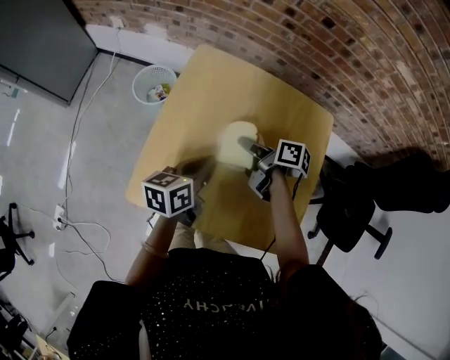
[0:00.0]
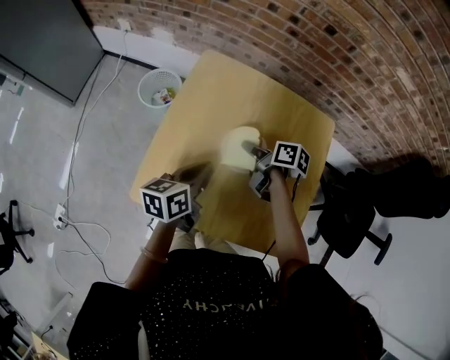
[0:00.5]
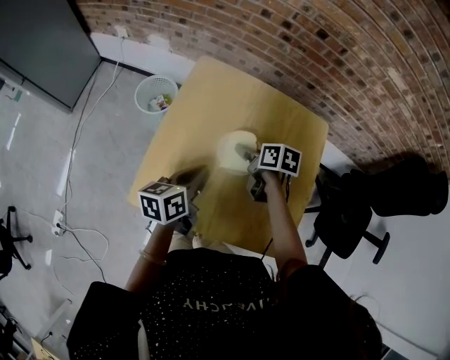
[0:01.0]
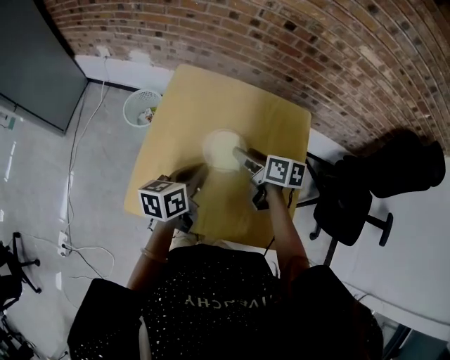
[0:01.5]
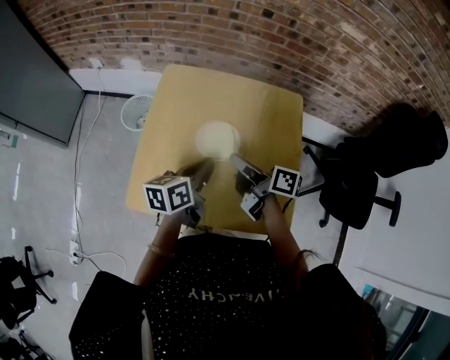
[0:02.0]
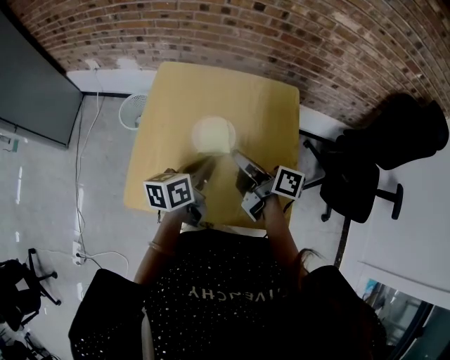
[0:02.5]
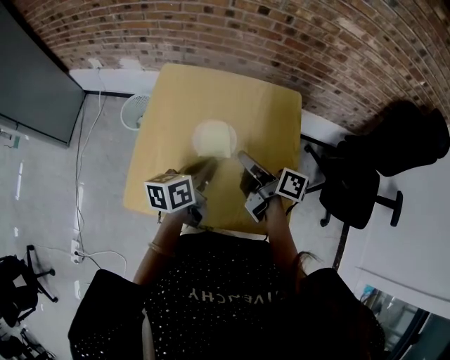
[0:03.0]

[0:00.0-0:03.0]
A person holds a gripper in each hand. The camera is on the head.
0:00.0 to 0:01.5: The right gripper moves about 5 cm, swivels some 30 degrees, and opens its fingers.
0:01.5 to 0:03.0: The right gripper shifts roughly 10 cm backward and upward, changes its angle by about 30 degrees, and closes its fingers, while the left gripper is displaced to the right by roughly 5 cm.

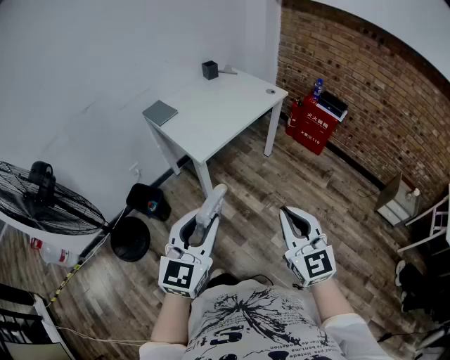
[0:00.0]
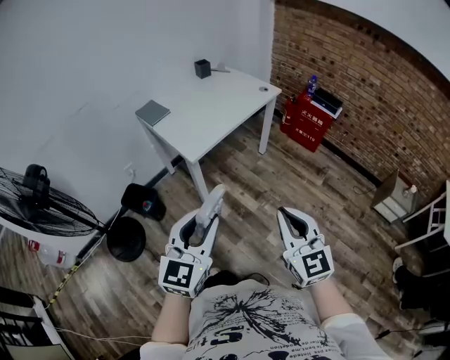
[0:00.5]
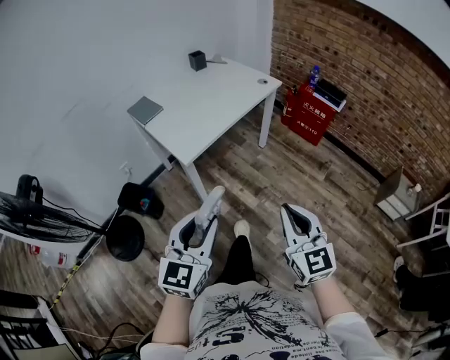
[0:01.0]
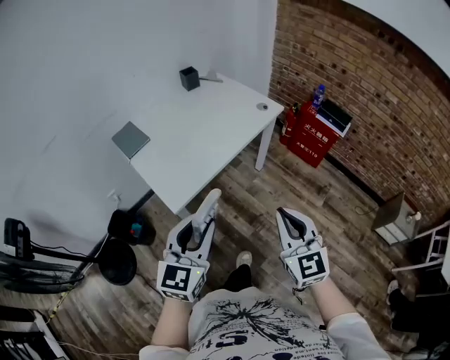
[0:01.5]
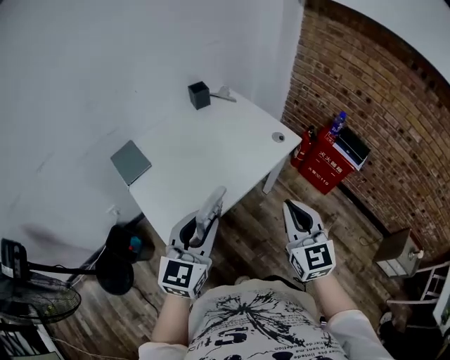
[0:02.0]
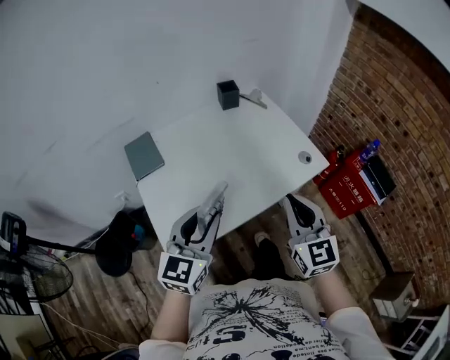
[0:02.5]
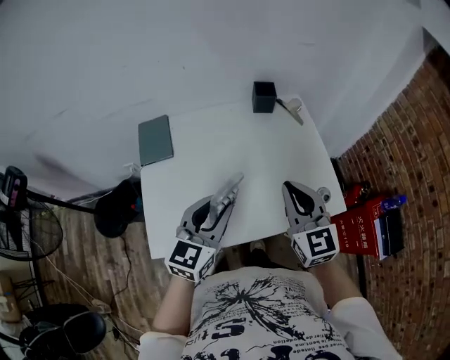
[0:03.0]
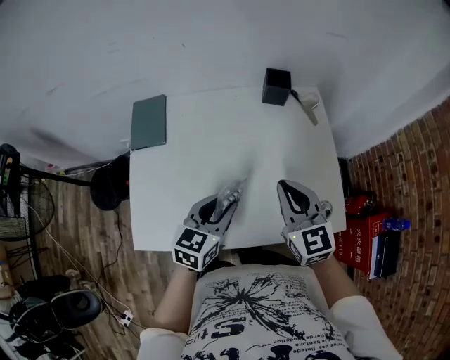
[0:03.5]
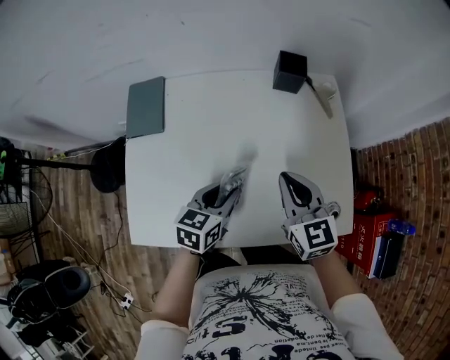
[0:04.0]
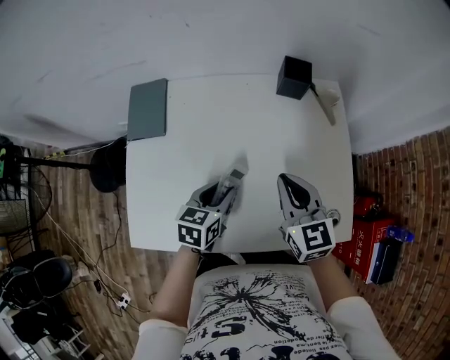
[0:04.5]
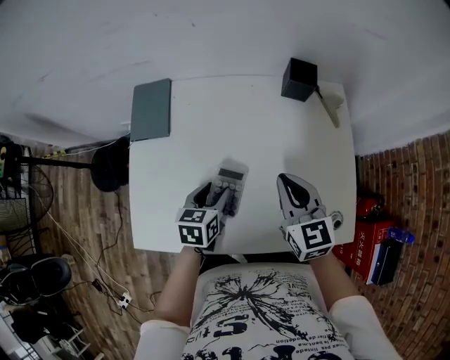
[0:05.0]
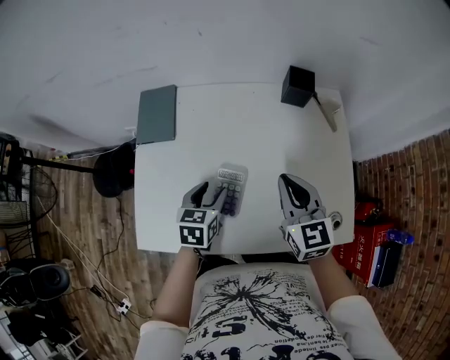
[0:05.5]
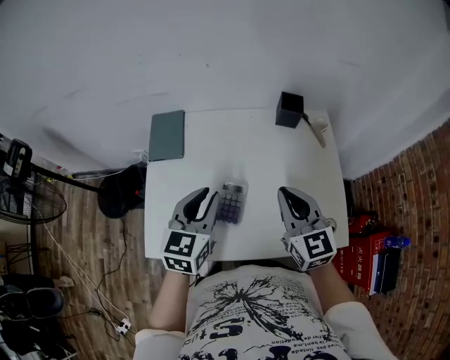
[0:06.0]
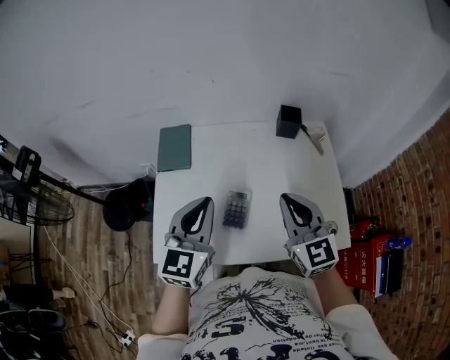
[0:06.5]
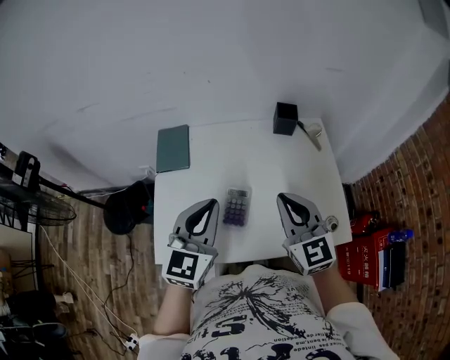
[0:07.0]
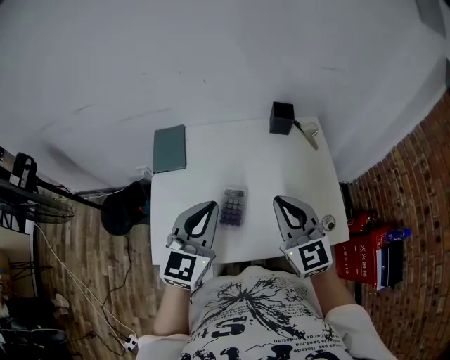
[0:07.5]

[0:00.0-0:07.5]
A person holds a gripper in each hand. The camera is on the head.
0:00.0 to 0:02.0: The two grippers travel together, forward, some 60 cm.
0:02.0 to 0:04.0: The right gripper moves some 50 cm, and rotates approximately 50 degrees; the left gripper shifts by approximately 50 cm, and changes its angle by about 50 degrees.
0:04.0 to 0:05.5: The left gripper travels to the left by some 10 cm, and opens up.
0:05.5 to 0:07.5: The right gripper goes some 15 cm upward and backward. Meanwhile the left gripper heads upward, covering about 25 cm, tips its fingers upward by about 30 degrees, and closes its fingers.

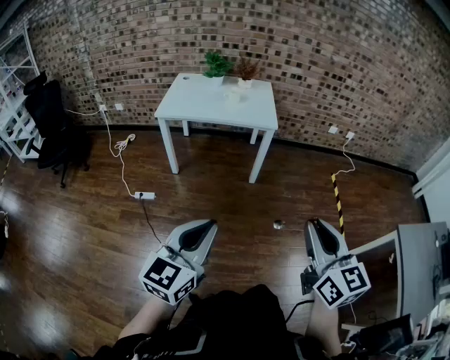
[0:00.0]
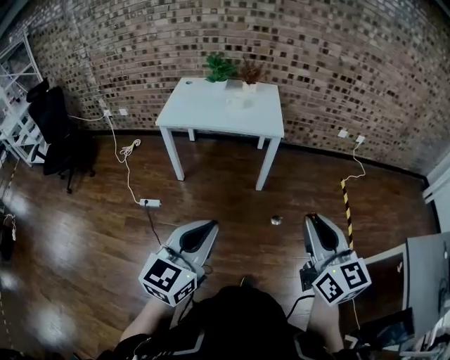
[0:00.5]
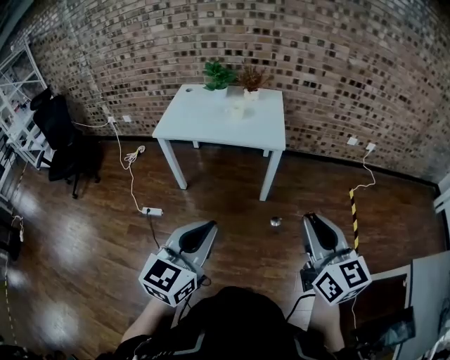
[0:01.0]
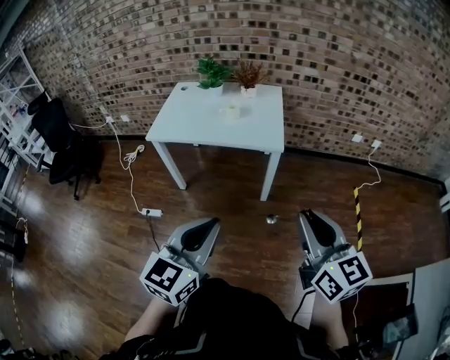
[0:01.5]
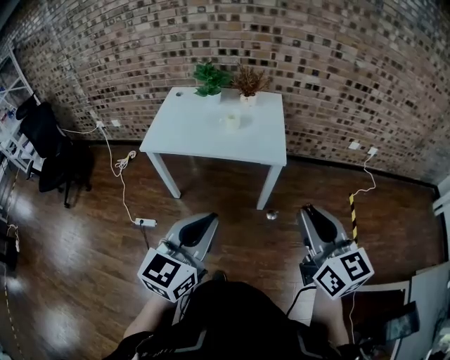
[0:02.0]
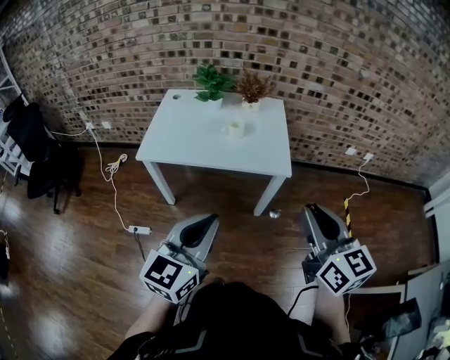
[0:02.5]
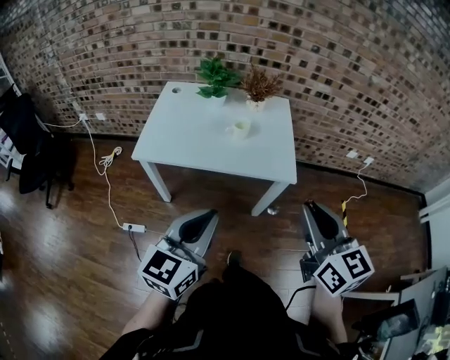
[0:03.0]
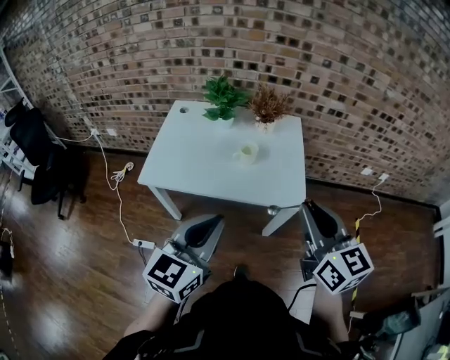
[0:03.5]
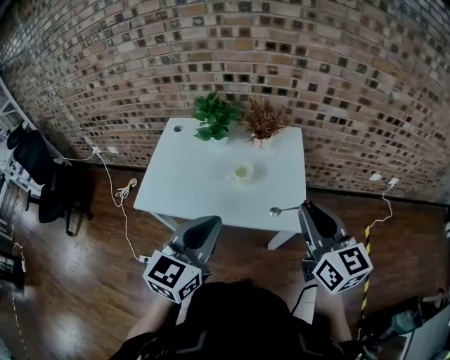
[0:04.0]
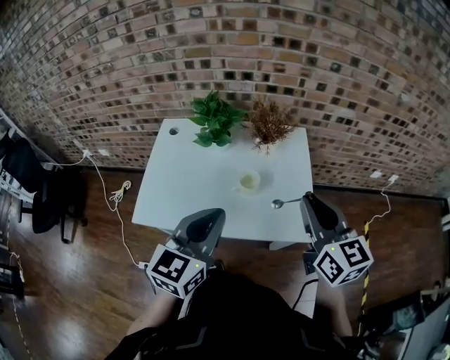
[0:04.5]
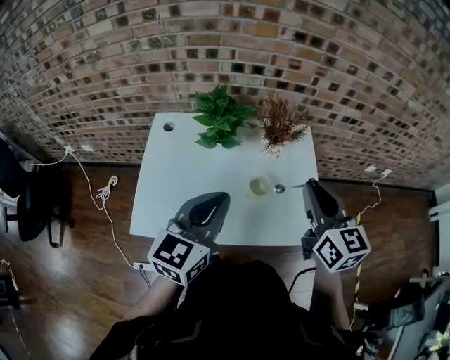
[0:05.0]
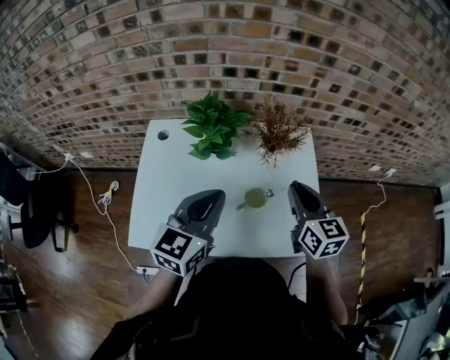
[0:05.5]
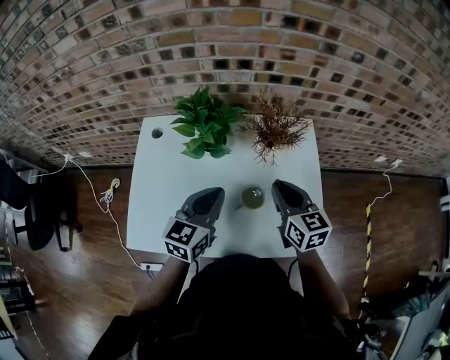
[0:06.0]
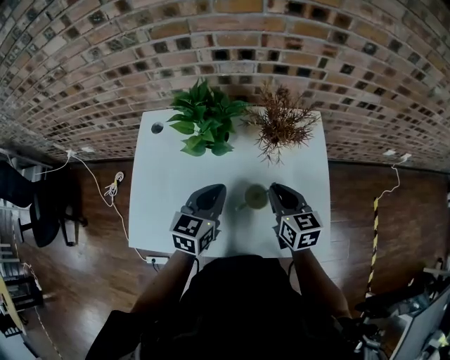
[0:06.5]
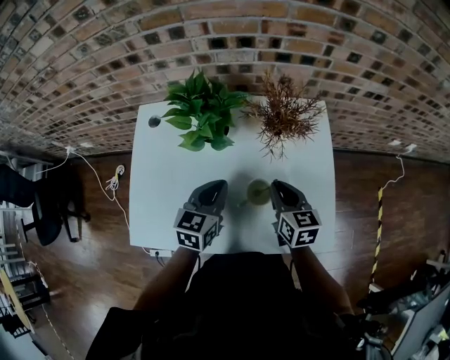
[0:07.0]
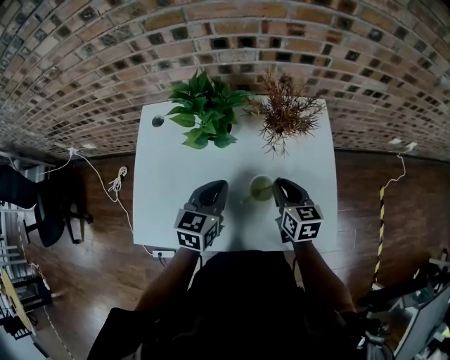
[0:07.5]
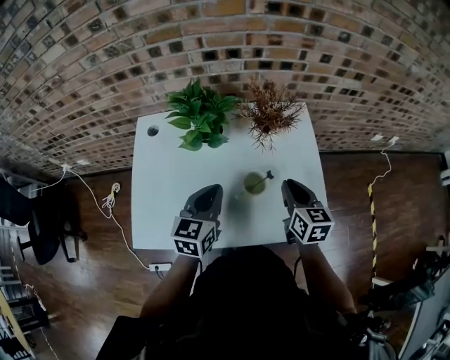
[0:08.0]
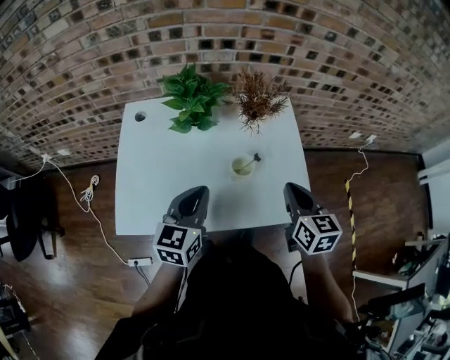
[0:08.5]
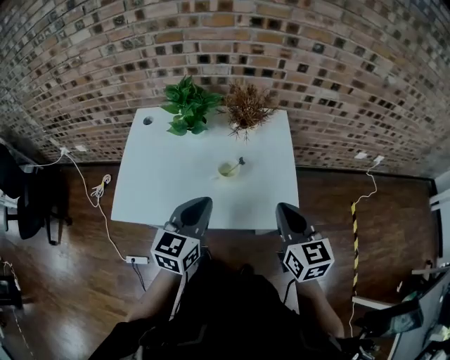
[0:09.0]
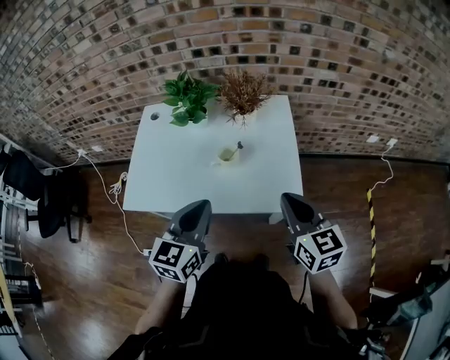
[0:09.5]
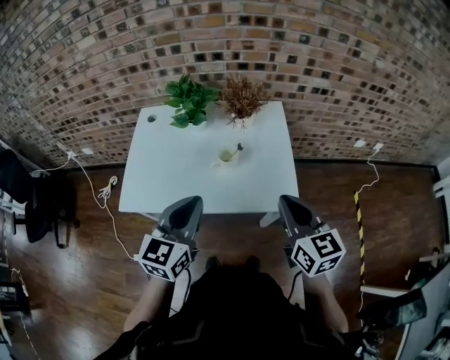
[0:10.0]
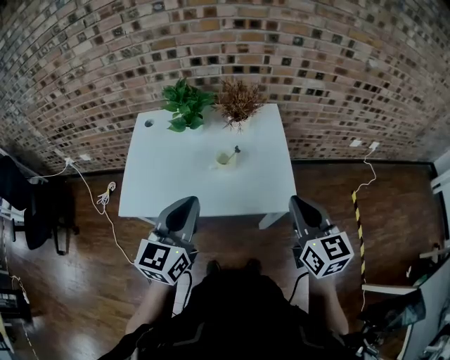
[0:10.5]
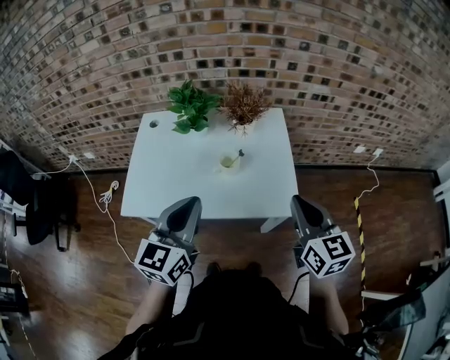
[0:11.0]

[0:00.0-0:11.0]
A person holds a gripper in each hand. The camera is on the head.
0:00.0 to 0:02.0: The grippers both shift forward by some 35 cm.
0:02.0 to 0:03.5: The two grippers go roughly 25 cm forward and to the left.
0:03.5 to 0:05.5: The two grippers go roughly 35 cm forward.
0:05.5 to 0:07.5: The right gripper shifts roughly 20 cm downward, while the left gripper goes some 20 cm downward and forward.
0:07.5 to 0:09.0: Both grippers move backward, upward and to the right, about 25 cm.
0:09.0 to 0:11.0: Both grippers travel together upward and backward, roughly 10 cm.

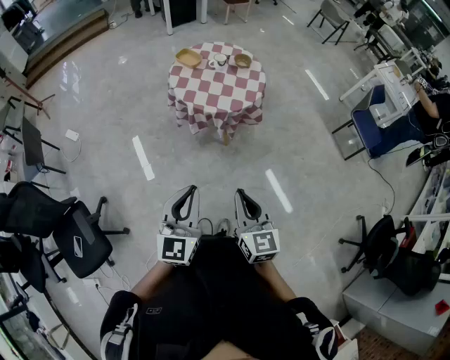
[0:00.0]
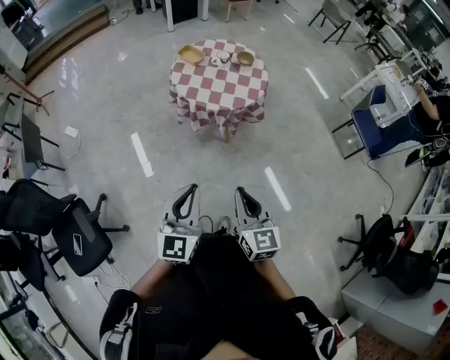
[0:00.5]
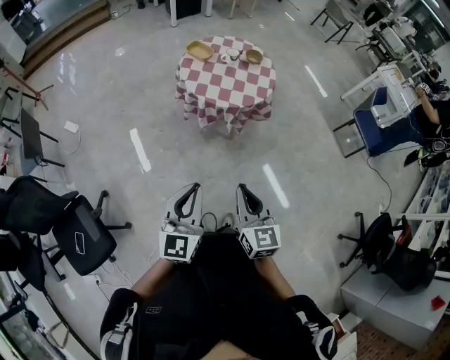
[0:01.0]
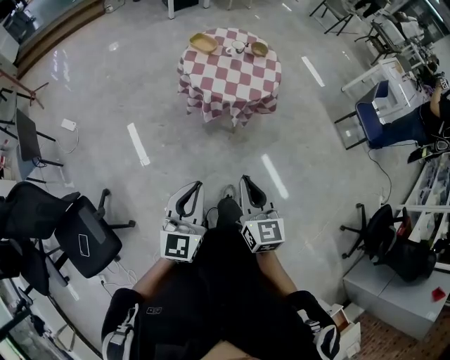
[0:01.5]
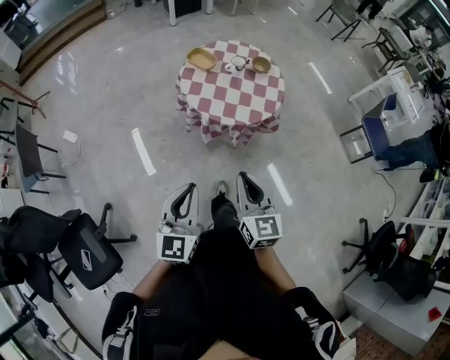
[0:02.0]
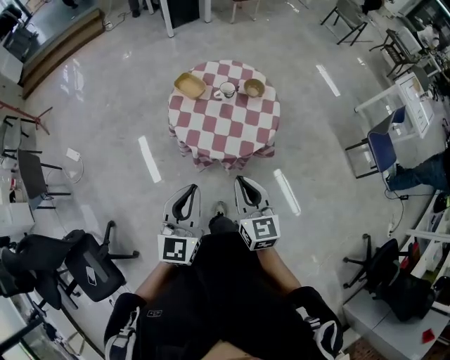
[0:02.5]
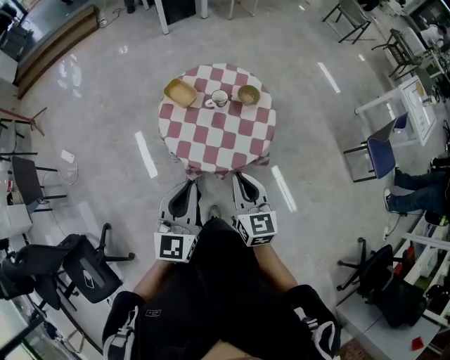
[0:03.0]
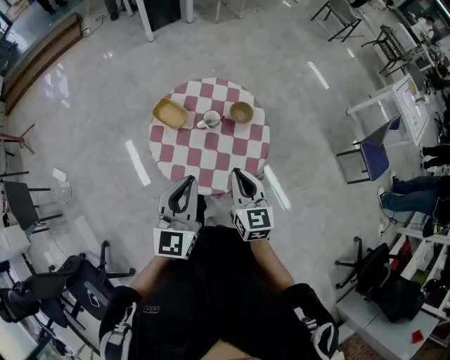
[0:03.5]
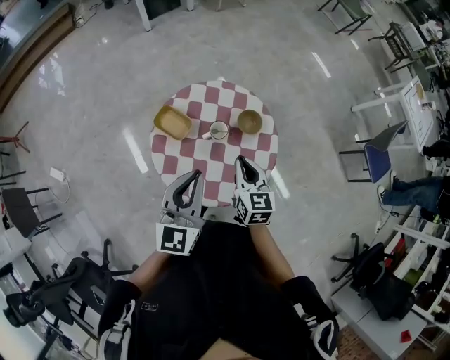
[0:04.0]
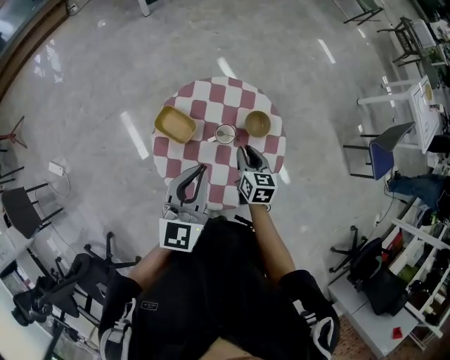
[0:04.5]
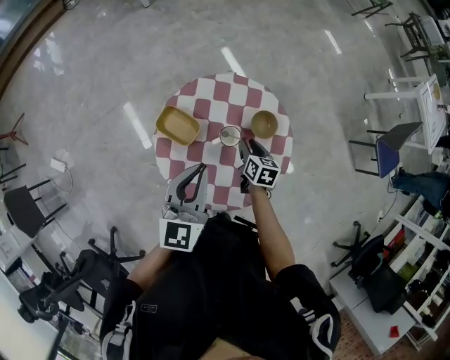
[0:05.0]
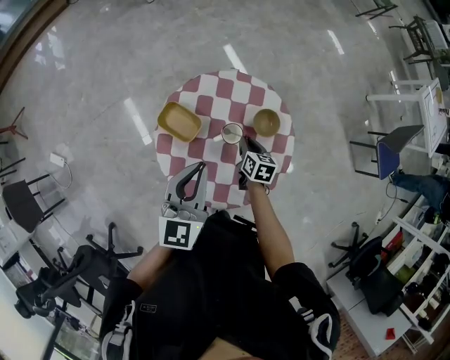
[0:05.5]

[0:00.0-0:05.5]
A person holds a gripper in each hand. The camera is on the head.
0:00.0 to 0:02.0: The two grippers go about 20 cm forward and to the left.
0:02.0 to 0:03.5: Both grippers move forward, about 40 cm.
0:03.5 to 0:05.5: The right gripper shifts approximately 35 cm downward and forward, and rotates about 40 degrees. Meanwhile the left gripper shifts about 20 cm forward and downward.
